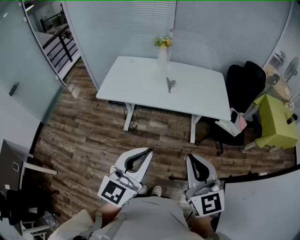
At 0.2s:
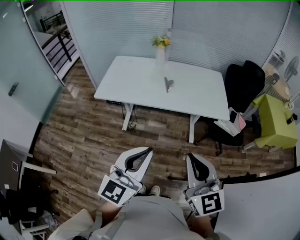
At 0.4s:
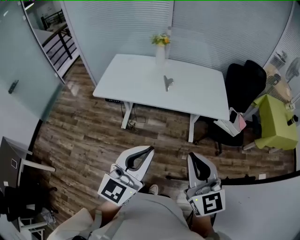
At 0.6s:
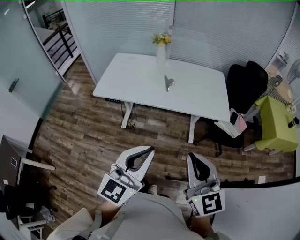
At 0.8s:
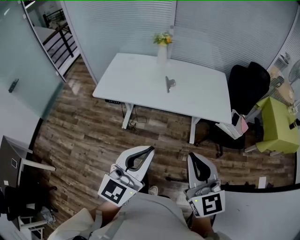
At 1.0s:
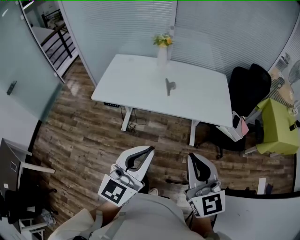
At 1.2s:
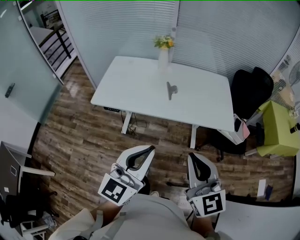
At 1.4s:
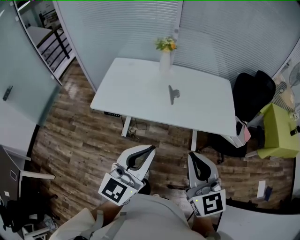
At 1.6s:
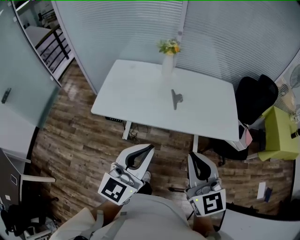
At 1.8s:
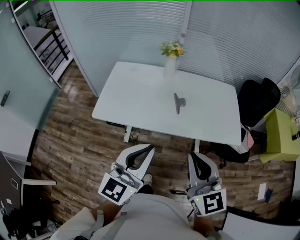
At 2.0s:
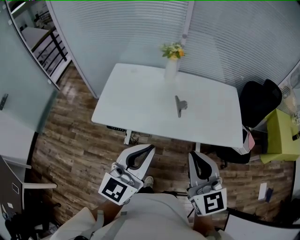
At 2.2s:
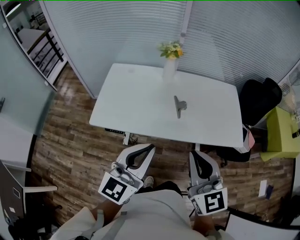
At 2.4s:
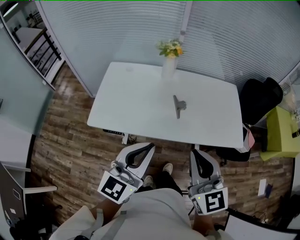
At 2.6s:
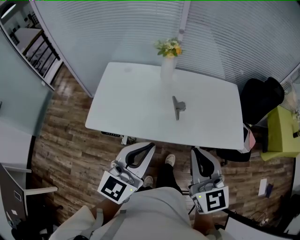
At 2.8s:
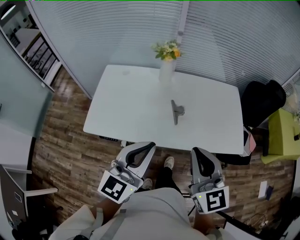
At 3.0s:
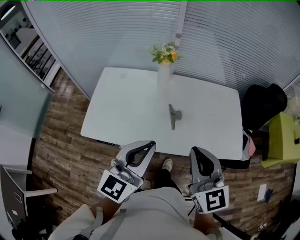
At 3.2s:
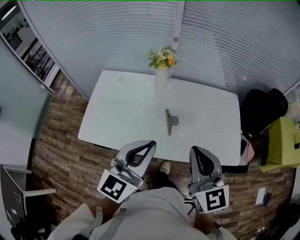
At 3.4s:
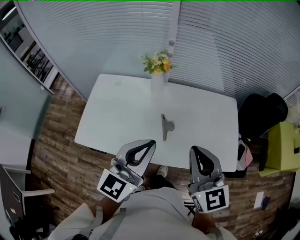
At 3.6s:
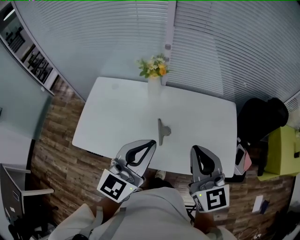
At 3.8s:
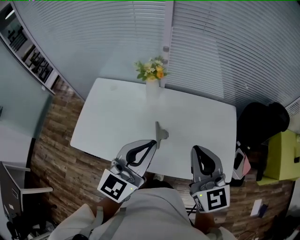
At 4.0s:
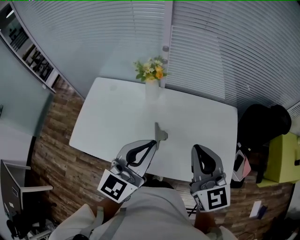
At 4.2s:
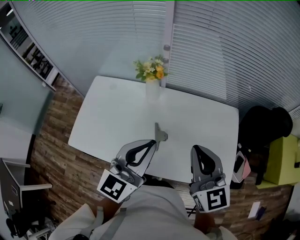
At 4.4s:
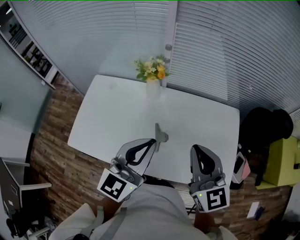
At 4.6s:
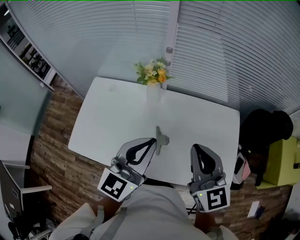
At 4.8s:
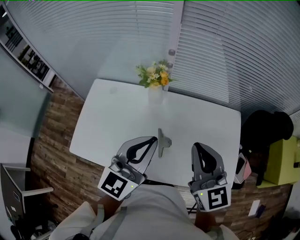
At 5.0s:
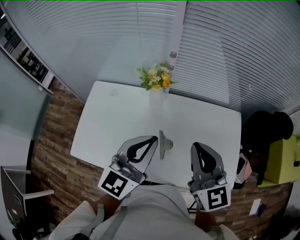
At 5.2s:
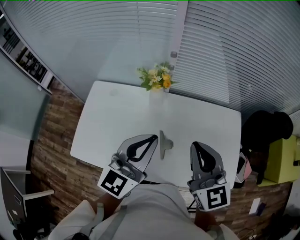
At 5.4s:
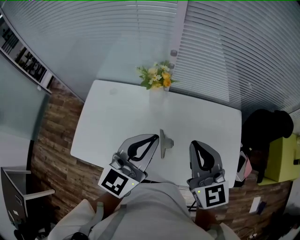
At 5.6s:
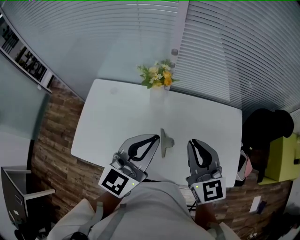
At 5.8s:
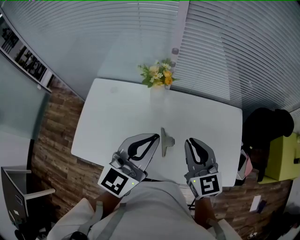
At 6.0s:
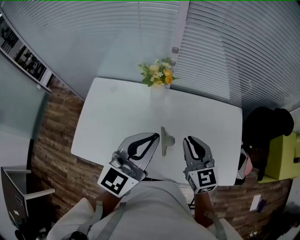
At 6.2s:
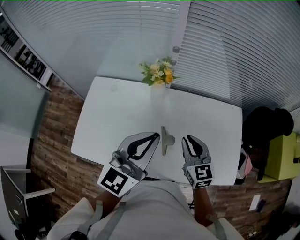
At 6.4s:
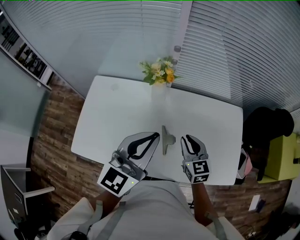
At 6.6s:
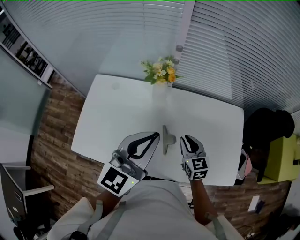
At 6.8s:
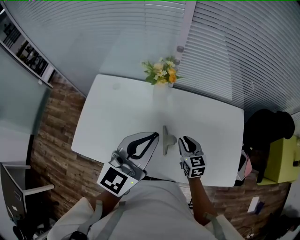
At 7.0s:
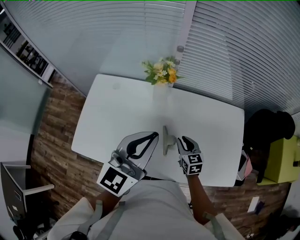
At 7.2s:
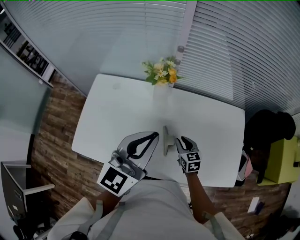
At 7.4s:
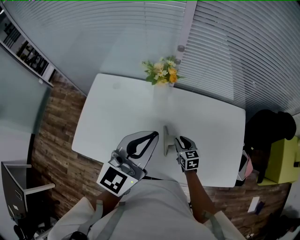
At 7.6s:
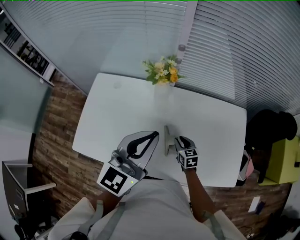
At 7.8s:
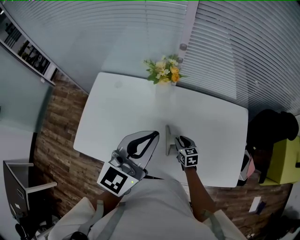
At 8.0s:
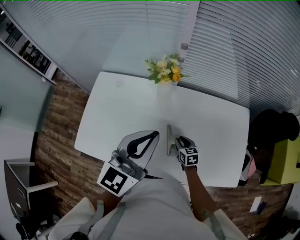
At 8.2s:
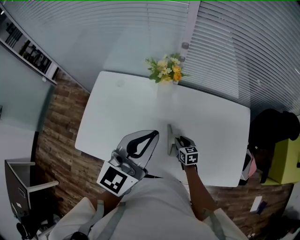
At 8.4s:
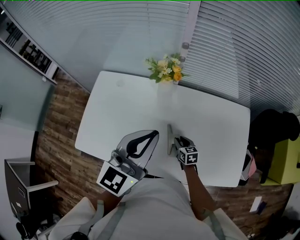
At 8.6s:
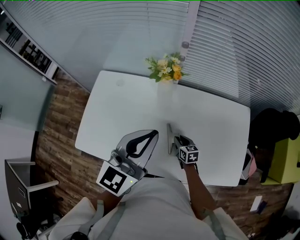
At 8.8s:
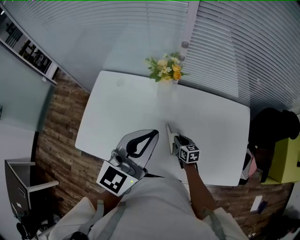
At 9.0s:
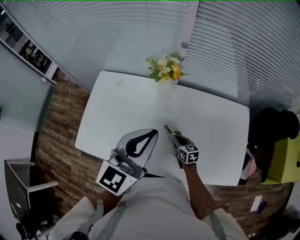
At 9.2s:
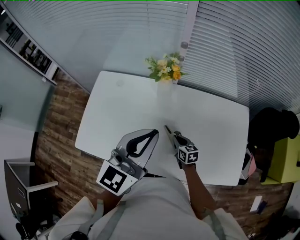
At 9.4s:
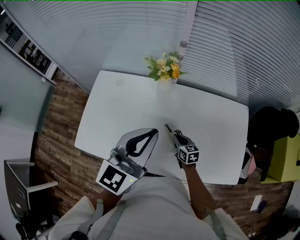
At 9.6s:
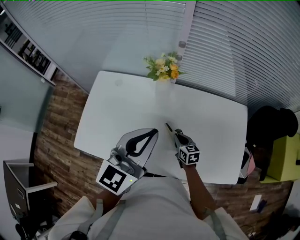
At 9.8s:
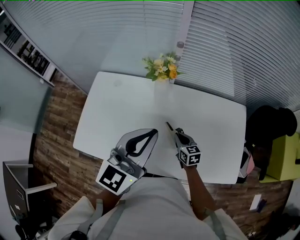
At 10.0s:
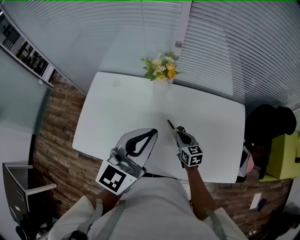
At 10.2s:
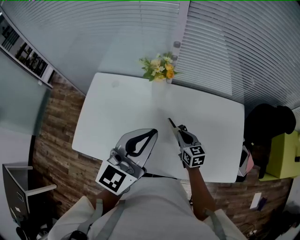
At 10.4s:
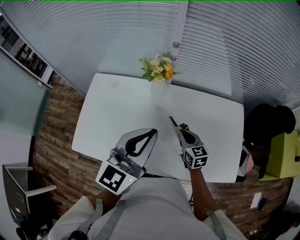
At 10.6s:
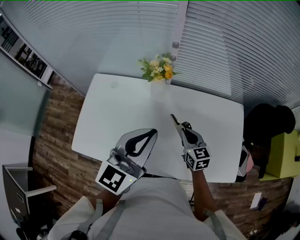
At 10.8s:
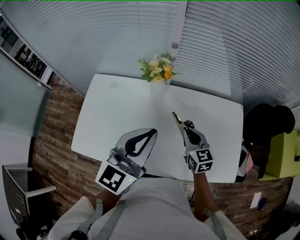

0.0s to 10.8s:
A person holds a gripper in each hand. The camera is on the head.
0.0s to 1.6s: Both grippers move forward, roughly 20 cm.
1.6s to 3.0s: The grippers both shift forward by approximately 20 cm.
3.0s to 4.6s: The grippers both shift forward and to the right by approximately 20 cm.
4.6s to 6.2s: The right gripper is displaced downward by some 15 cm.
6.2s to 7.8s: The right gripper heads downward, covering about 25 cm, and turns by about 20 degrees.
7.8s to 9.2s: The right gripper closes up.
9.2s to 10.8s: The right gripper is displaced upward by some 20 cm, and rotates some 20 degrees.

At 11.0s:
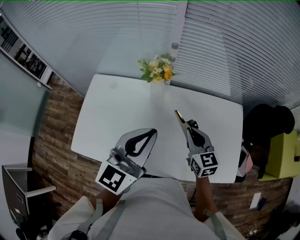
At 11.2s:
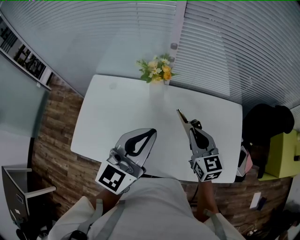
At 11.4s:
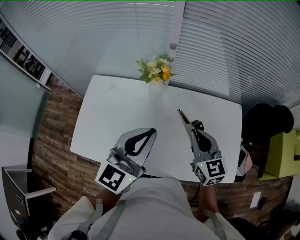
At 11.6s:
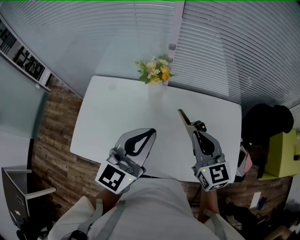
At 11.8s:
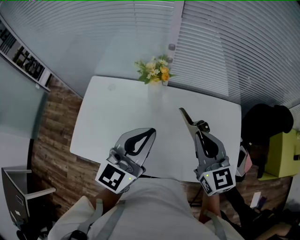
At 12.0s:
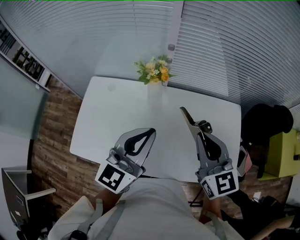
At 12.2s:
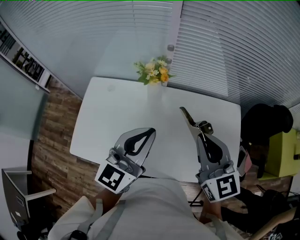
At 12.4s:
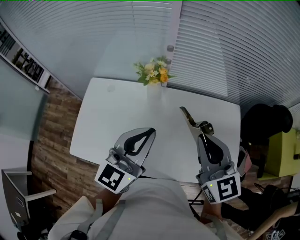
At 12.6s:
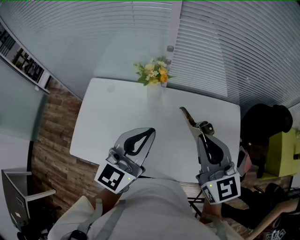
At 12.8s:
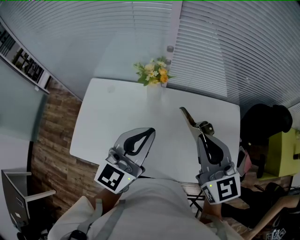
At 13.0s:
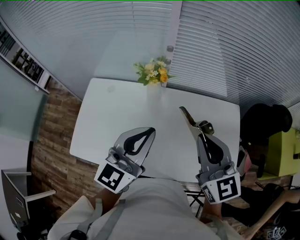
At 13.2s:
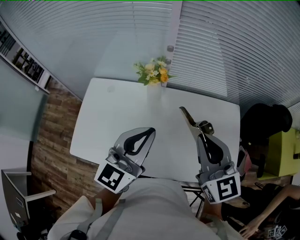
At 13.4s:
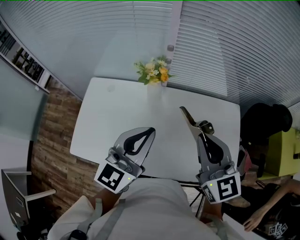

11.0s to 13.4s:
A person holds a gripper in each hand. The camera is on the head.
11.0s to 12.2s: The right gripper travels upward by some 15 cm.
12.2s to 13.4s: The grippers move only a little.

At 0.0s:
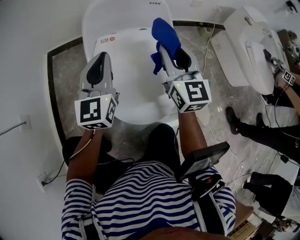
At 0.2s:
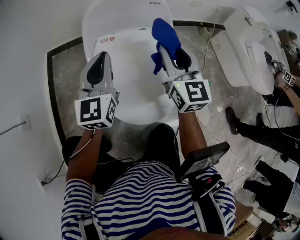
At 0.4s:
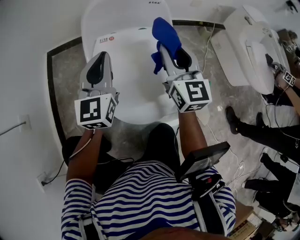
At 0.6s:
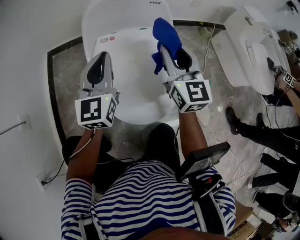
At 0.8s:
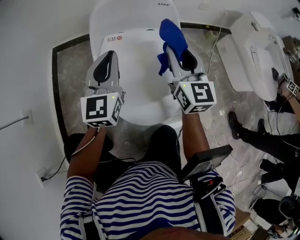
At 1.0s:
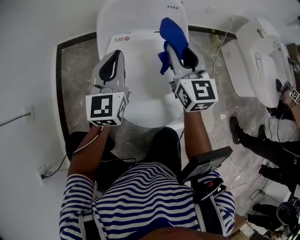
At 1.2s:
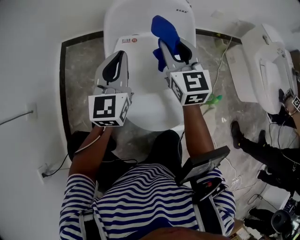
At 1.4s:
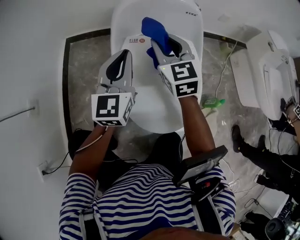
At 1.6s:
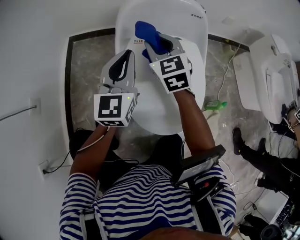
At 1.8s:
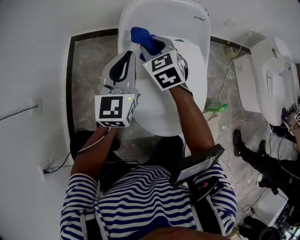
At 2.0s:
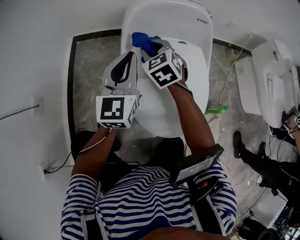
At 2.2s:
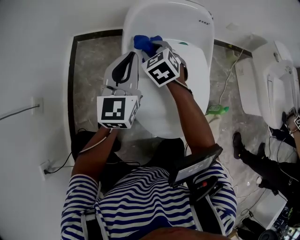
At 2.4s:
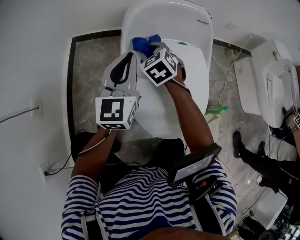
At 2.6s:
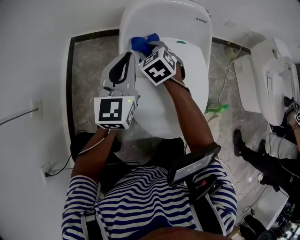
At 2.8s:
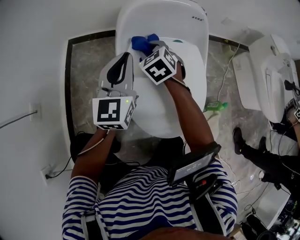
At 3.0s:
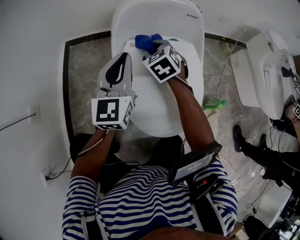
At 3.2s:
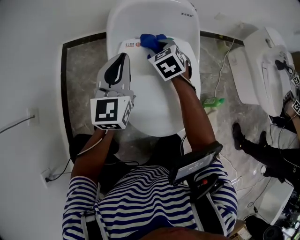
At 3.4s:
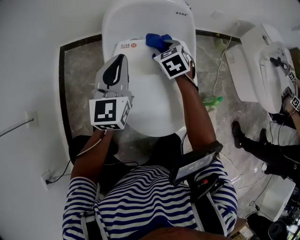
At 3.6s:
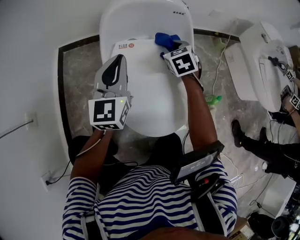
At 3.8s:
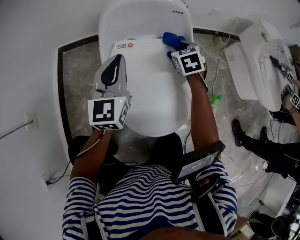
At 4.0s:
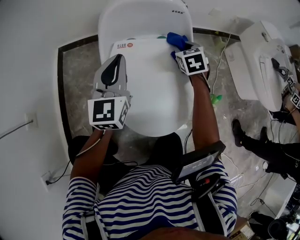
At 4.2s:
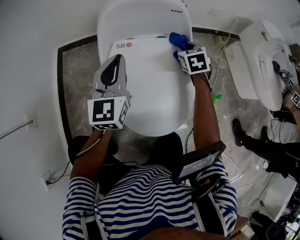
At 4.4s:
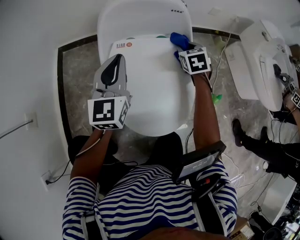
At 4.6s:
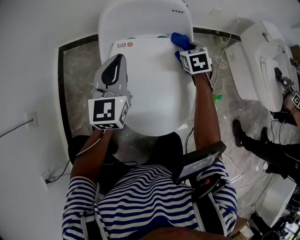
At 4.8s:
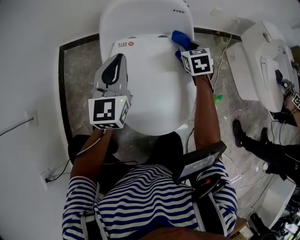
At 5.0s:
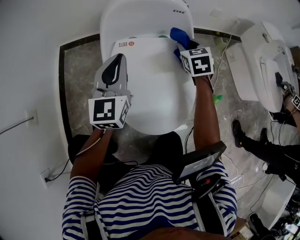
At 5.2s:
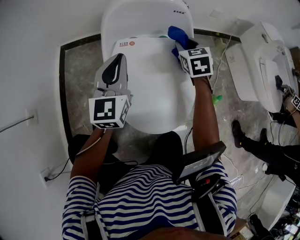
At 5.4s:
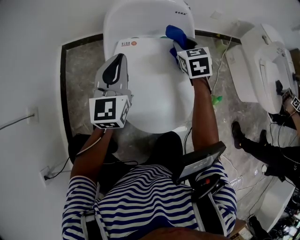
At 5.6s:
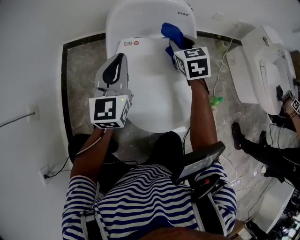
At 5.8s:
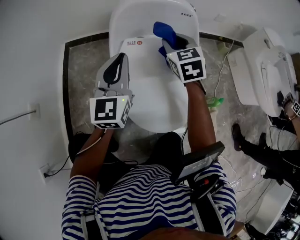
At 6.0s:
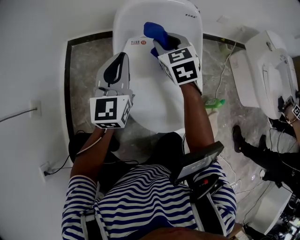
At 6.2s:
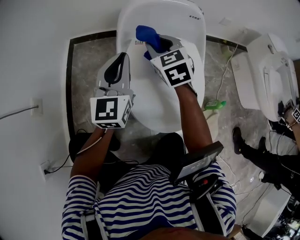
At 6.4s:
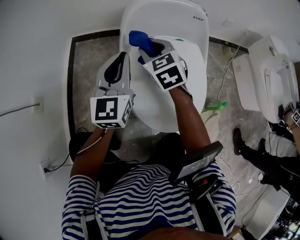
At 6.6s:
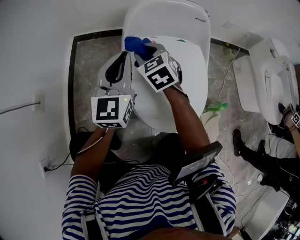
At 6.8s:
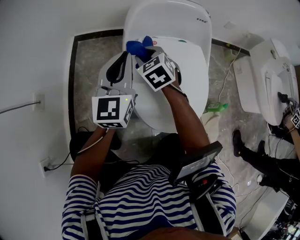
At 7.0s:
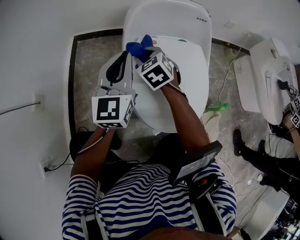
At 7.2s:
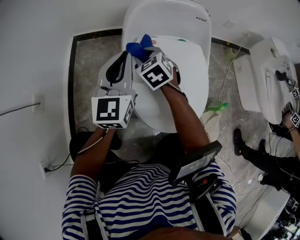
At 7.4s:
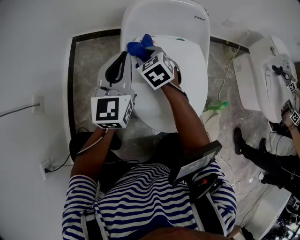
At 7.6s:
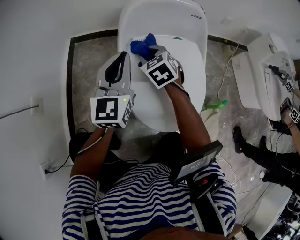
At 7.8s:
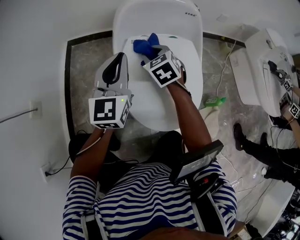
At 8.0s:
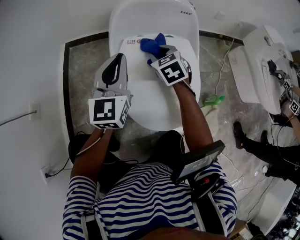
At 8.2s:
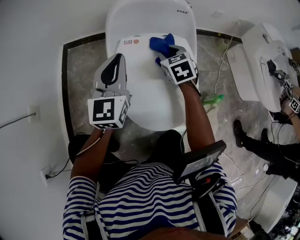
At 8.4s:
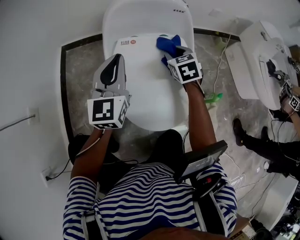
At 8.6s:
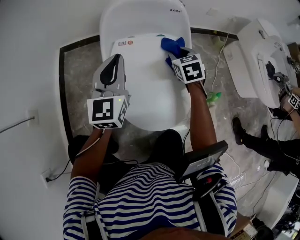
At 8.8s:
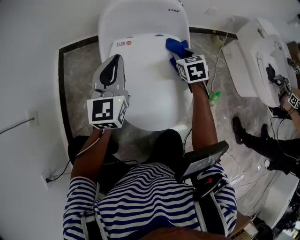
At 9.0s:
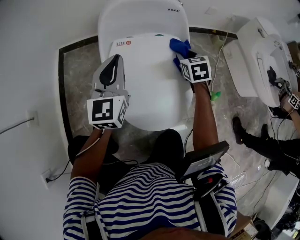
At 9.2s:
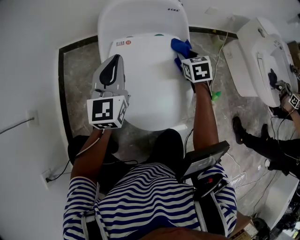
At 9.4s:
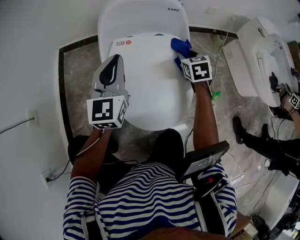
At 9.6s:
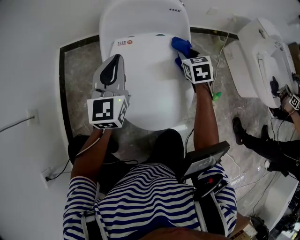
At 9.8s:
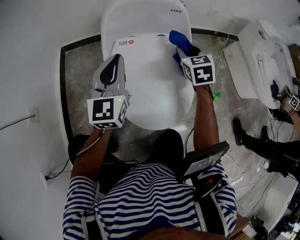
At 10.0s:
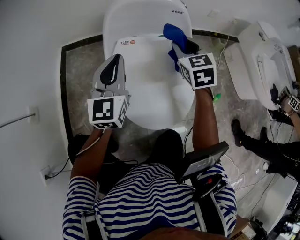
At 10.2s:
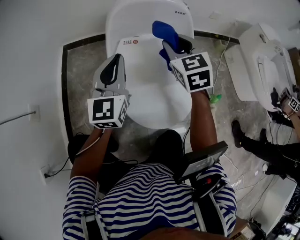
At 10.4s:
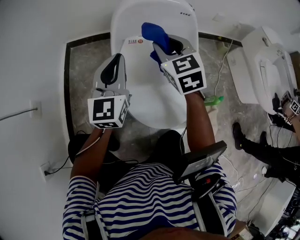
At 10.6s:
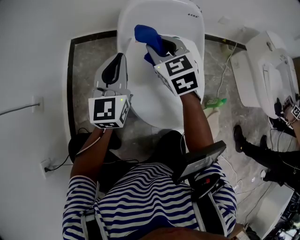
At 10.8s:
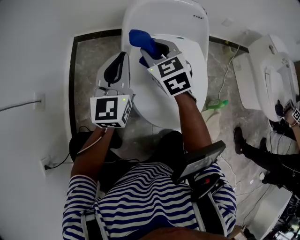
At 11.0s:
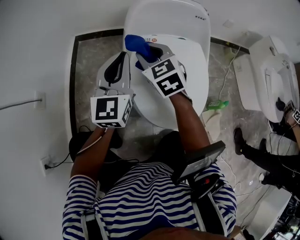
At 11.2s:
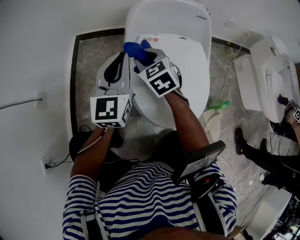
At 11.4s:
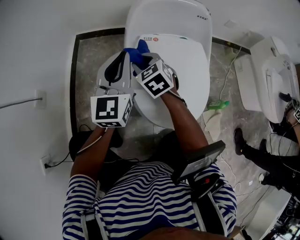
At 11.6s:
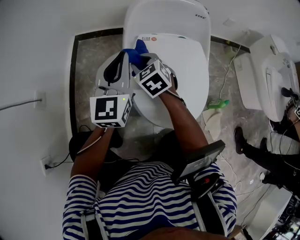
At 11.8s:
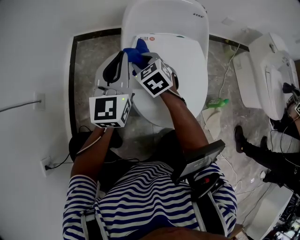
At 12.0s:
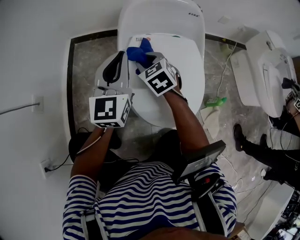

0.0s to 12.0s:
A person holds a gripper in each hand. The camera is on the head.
0.0s to 1.6s: The left gripper changes place by some 5 cm. Meanwhile the right gripper is displaced to the left, forward and downward by some 20 cm, and changes its angle by approximately 30 degrees.
1.6s to 3.0s: The right gripper shifts approximately 10 cm downward, and swivels approximately 20 degrees.
3.0s to 4.4s: The right gripper heads to the right, covering about 20 cm, and changes its angle by some 20 degrees.
4.4s to 6.0s: The left gripper ends up some 5 cm from where it was; the right gripper shifts roughly 20 cm to the left and upward, and rotates some 20 degrees.
6.0s to 7.6s: The right gripper moves downward and to the left, approximately 10 cm.
7.6s to 9.0s: The left gripper shifts roughly 5 cm to the right; the right gripper goes some 25 cm to the right, and turns by some 30 degrees.
9.0s to 10.4s: The right gripper moves to the left and upward, some 20 cm, and changes its angle by roughly 30 degrees.
10.4s to 12.0s: The right gripper shifts about 15 cm downward and to the left.
